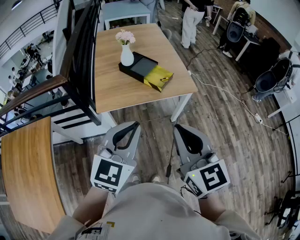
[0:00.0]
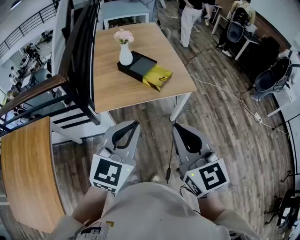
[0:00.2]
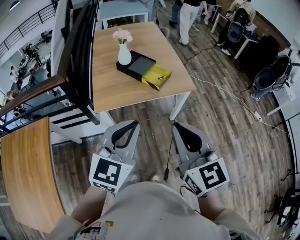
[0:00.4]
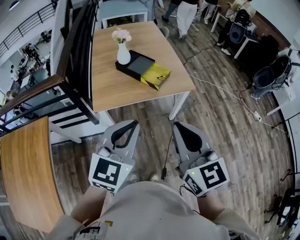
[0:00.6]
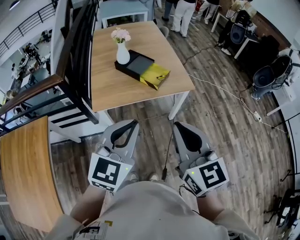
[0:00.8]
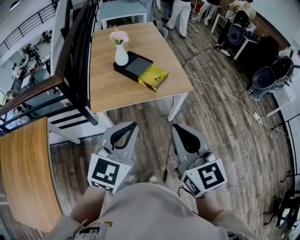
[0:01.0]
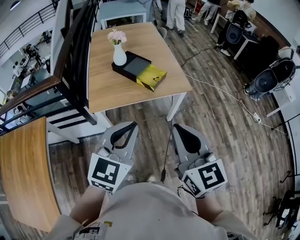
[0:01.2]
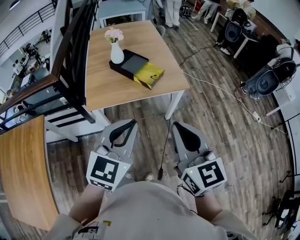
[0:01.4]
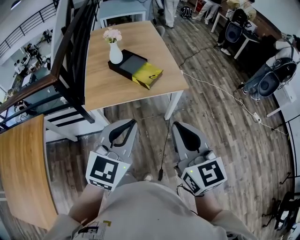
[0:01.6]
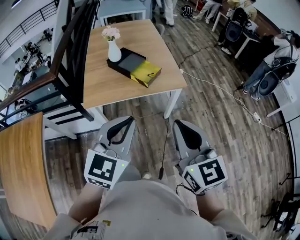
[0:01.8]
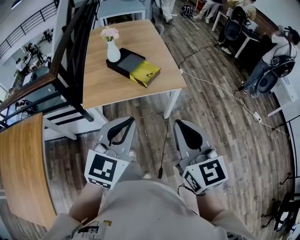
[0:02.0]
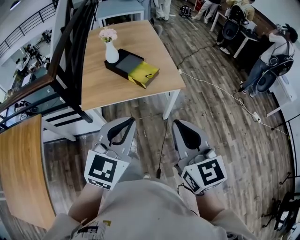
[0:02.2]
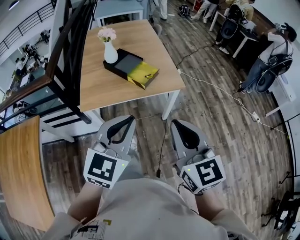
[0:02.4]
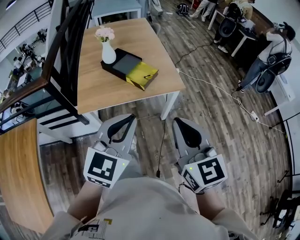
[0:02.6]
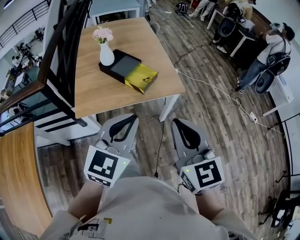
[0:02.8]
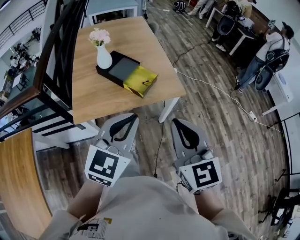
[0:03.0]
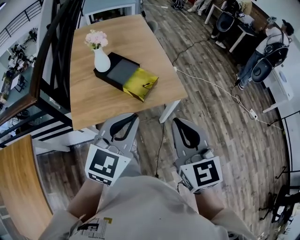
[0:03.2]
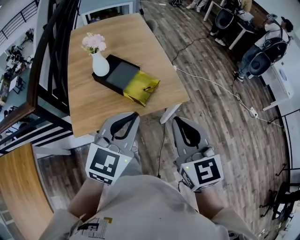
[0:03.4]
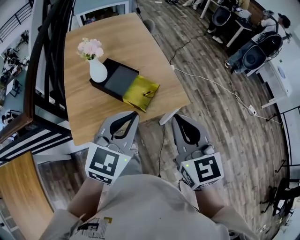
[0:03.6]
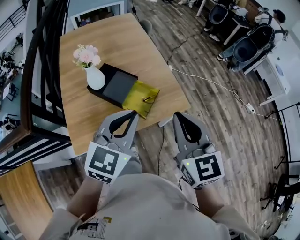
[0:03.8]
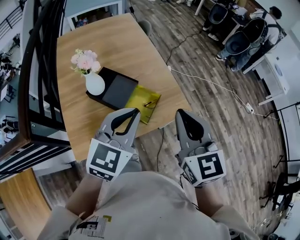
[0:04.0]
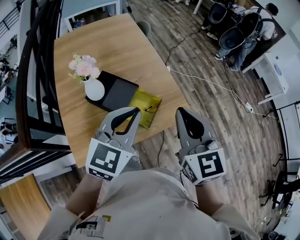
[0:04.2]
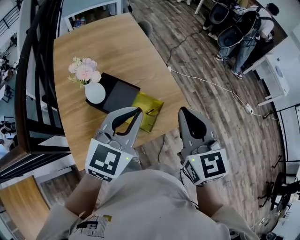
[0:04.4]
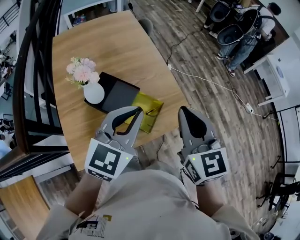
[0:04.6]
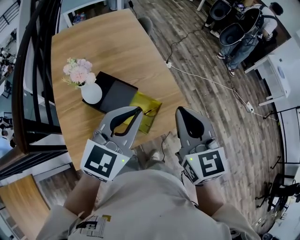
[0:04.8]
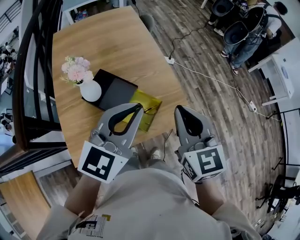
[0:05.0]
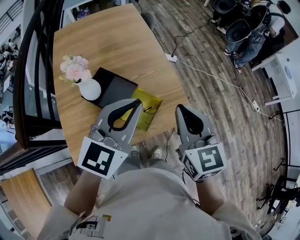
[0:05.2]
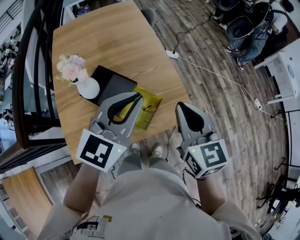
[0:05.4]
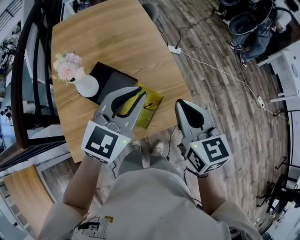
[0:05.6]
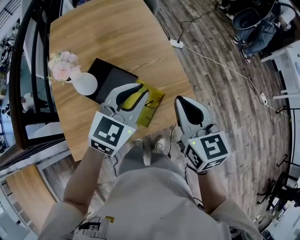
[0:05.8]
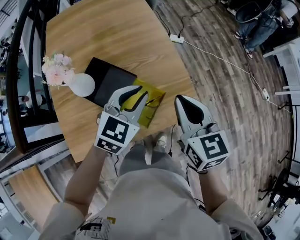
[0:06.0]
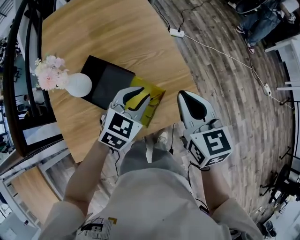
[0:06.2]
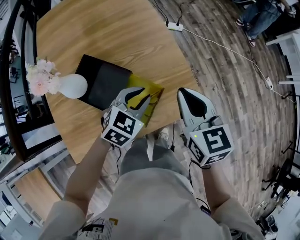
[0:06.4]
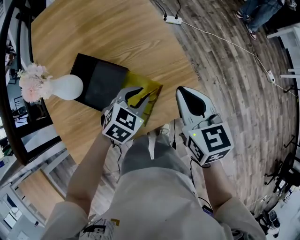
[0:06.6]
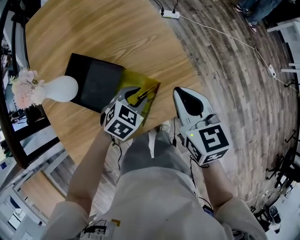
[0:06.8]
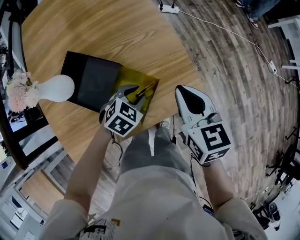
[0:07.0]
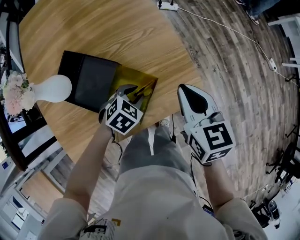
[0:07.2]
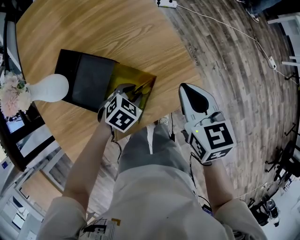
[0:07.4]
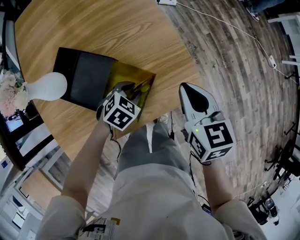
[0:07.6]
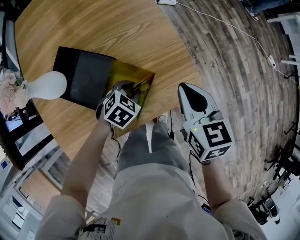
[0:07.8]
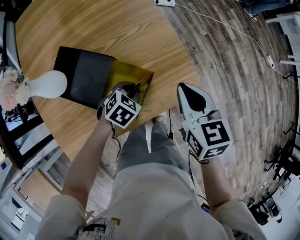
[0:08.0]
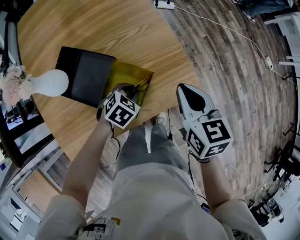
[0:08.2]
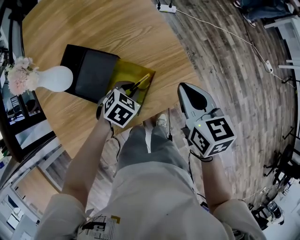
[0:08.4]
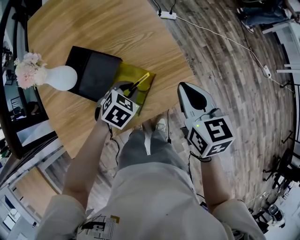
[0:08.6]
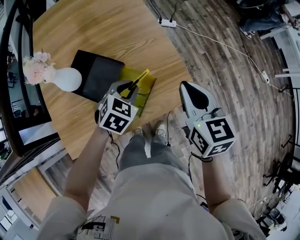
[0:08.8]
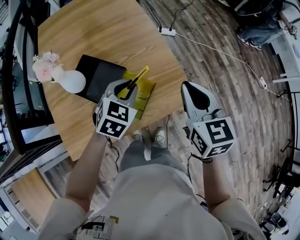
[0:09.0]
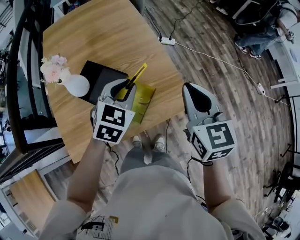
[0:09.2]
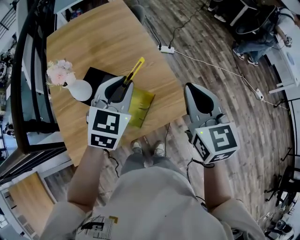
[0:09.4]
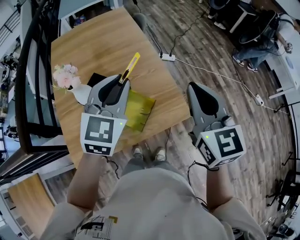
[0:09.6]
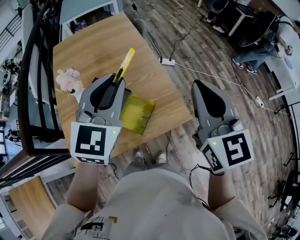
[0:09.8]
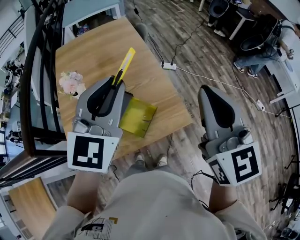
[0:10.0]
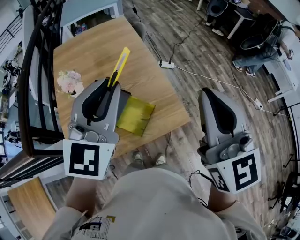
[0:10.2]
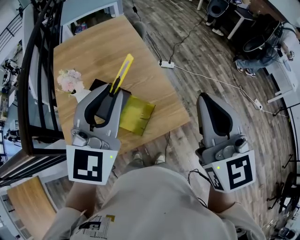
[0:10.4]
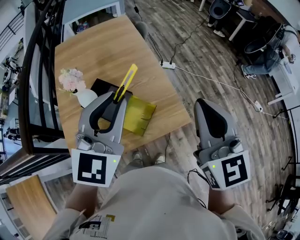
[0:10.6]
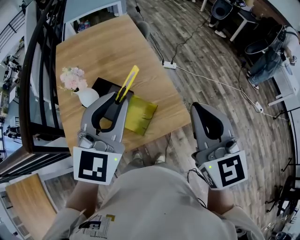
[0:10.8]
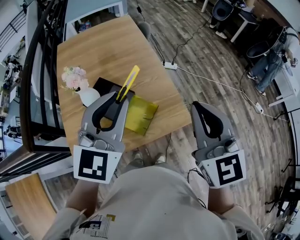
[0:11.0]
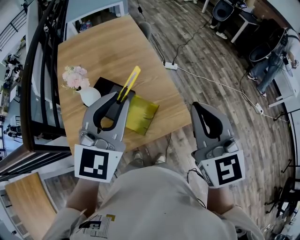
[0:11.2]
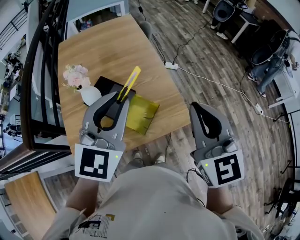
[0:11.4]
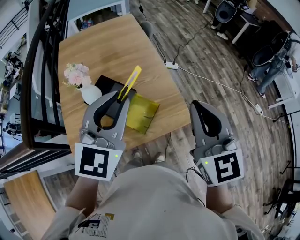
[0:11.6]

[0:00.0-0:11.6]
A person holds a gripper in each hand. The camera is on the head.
0:00.0 to 0:01.4: Both grippers move to the right, about 5 cm.
0:01.4 to 0:02.8: The grippers both shift forward by roughly 10 cm.
0:02.8 to 0:04.4: Both grippers are carried forward, about 40 cm.
0:04.4 to 0:05.8: The right gripper is displaced downward and forward by some 15 cm. The left gripper moves forward and downward, some 15 cm.
0:05.8 to 0:07.2: The right gripper heads downward, covering roughly 15 cm; the left gripper is displaced downward by about 30 cm, and angles its fingers downward, by some 40 degrees.
0:07.2 to 0:08.8: The two grippers go roughly 10 cm upward.
0:08.8 to 0:10.2: The two grippers go approximately 35 cm upward. The left gripper angles its fingers upward, by roughly 50 degrees. Meanwhile the right gripper changes its angle by roughly 30 degrees.
0:10.2 to 0:11.6: The left gripper ends up approximately 5 cm from where it was, while the right gripper moves downward, roughly 5 cm.

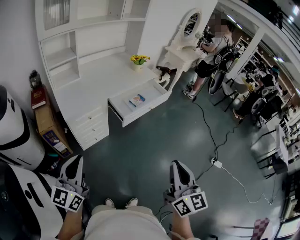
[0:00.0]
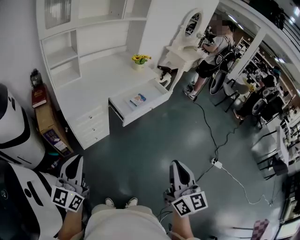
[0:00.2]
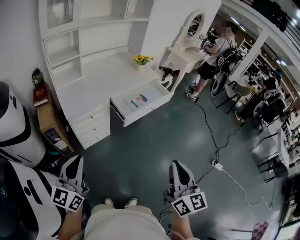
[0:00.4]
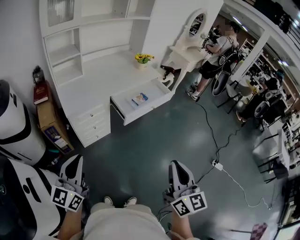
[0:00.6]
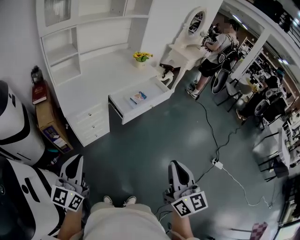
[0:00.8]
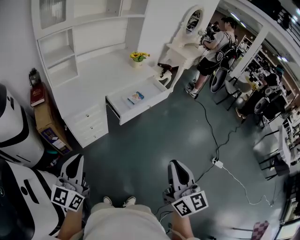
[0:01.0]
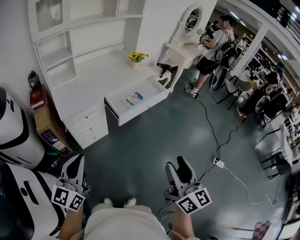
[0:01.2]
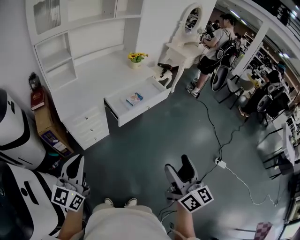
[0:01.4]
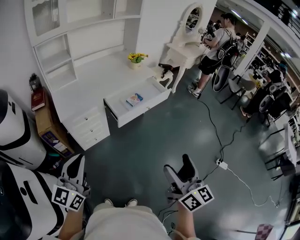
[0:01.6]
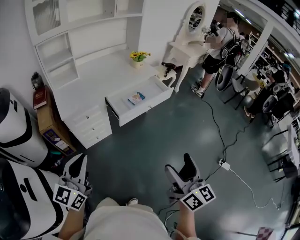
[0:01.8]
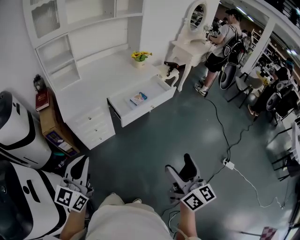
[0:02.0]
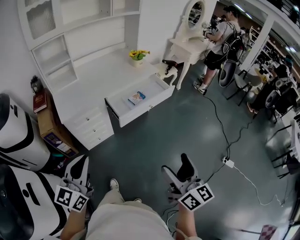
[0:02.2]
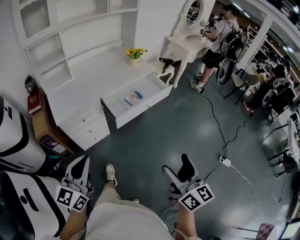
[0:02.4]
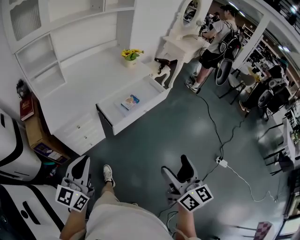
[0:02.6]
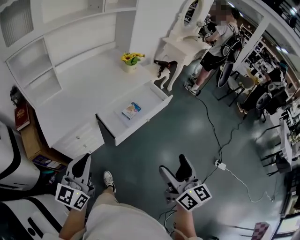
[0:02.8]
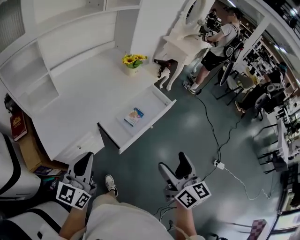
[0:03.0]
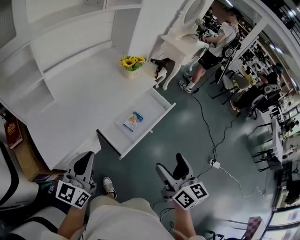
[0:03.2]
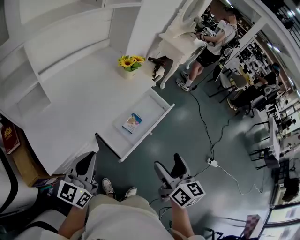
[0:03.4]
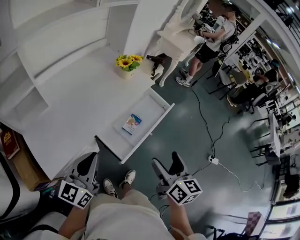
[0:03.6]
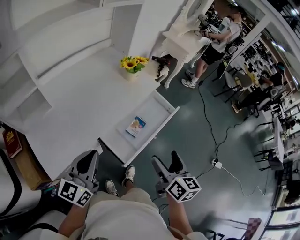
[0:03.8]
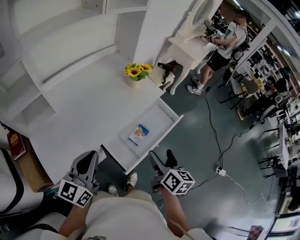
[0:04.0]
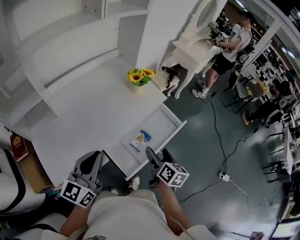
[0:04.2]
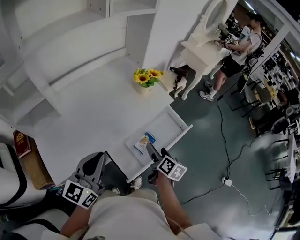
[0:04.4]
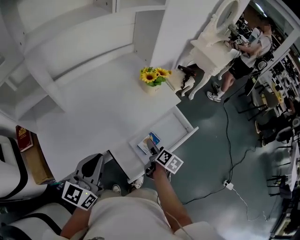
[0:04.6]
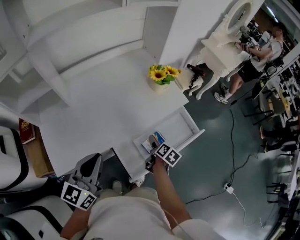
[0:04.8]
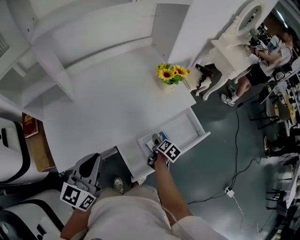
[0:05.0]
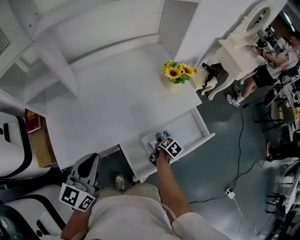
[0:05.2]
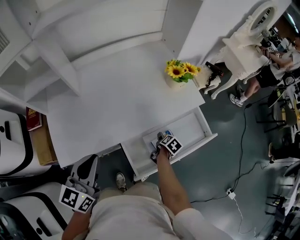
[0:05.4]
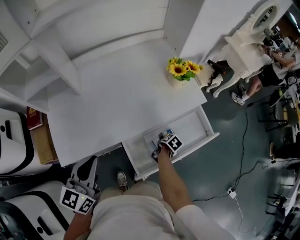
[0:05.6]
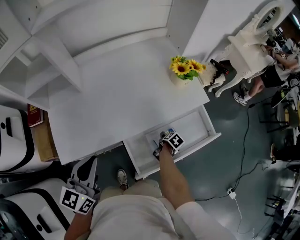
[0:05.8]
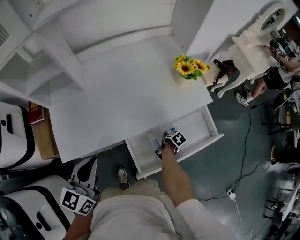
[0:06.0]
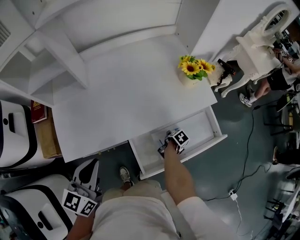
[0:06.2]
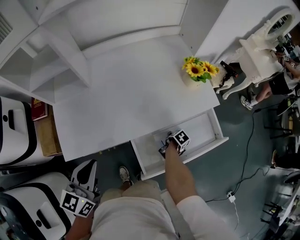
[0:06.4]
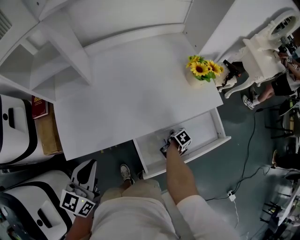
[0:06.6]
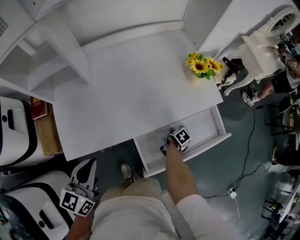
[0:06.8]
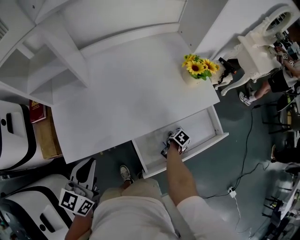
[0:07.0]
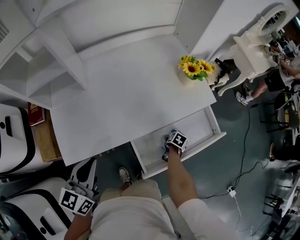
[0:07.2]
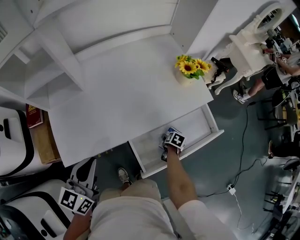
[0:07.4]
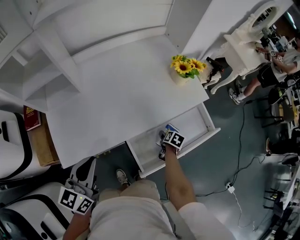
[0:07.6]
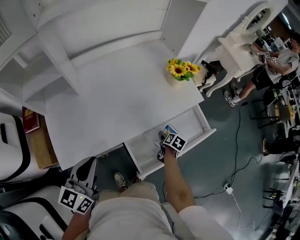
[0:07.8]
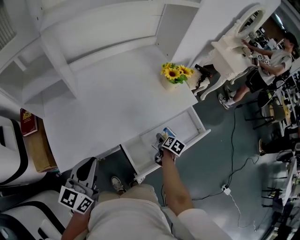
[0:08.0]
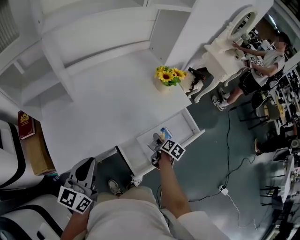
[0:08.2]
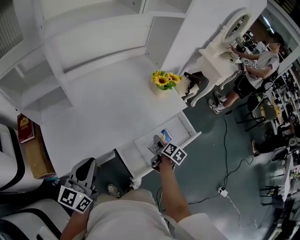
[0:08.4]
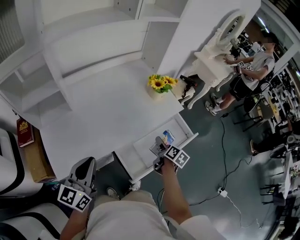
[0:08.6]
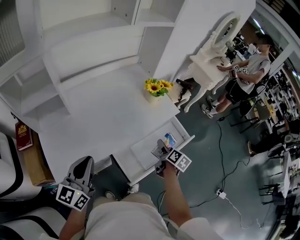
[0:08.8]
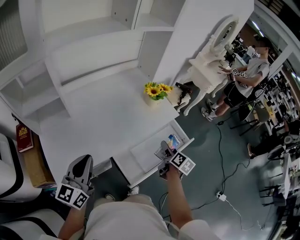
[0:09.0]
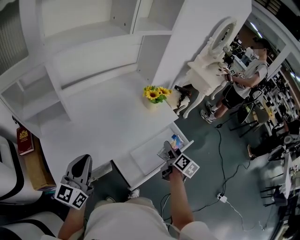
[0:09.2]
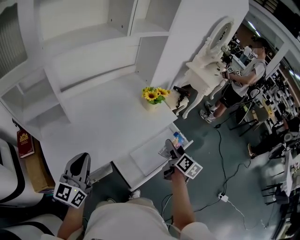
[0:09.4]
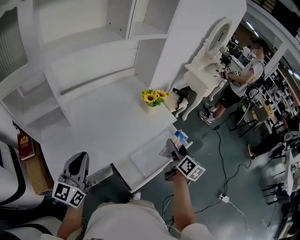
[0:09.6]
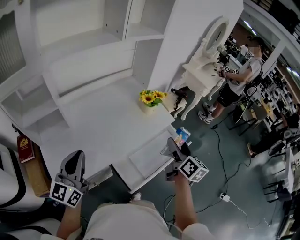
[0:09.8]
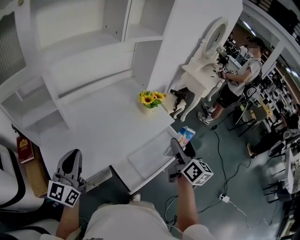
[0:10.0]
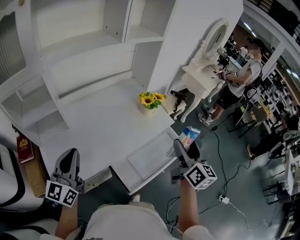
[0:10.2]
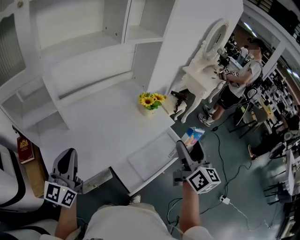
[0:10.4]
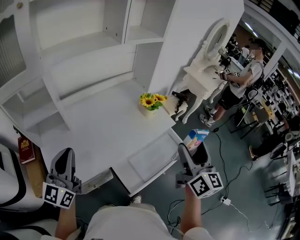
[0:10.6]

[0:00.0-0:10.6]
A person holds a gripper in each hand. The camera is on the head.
0:00.0 to 0:01.6: Both grippers move to the right, some 10 cm. The right gripper opens.
0:01.6 to 0:03.0: The two grippers go roughly 30 cm forward.
0:03.0 to 0:04.6: The left gripper is displaced forward by some 20 cm. The right gripper is displaced forward and downward by some 40 cm, and turns by roughly 40 degrees.
0:04.6 to 0:06.0: The left gripper is displaced to the left by roughly 5 cm. The right gripper is displaced downward by approximately 20 cm, and angles its fingers downward, by approximately 40 degrees.
0:06.0 to 0:07.6: The right gripper turns by some 20 degrees.
0:07.6 to 0:09.0: The right gripper moves upward, approximately 25 cm, and tilts its fingers roughly 40 degrees upward. Meanwhile the left gripper shifts about 5 cm upward.
0:09.0 to 0:10.6: The left gripper shifts approximately 10 cm upward. The right gripper travels upward by roughly 30 cm, and tilts its fingers roughly 30 degrees upward.

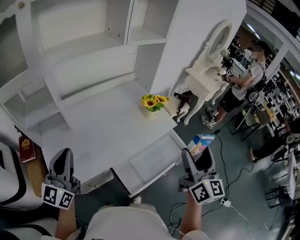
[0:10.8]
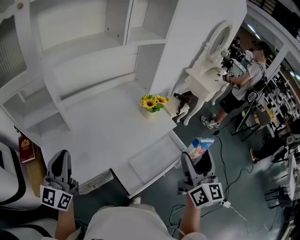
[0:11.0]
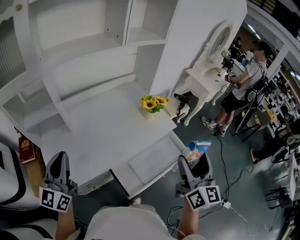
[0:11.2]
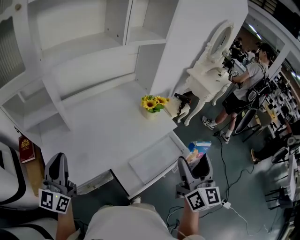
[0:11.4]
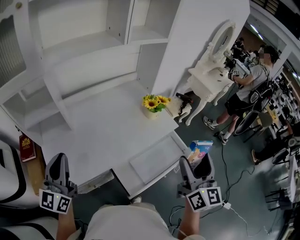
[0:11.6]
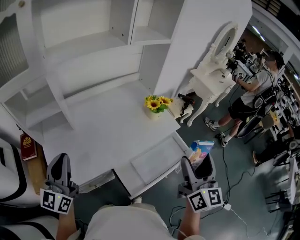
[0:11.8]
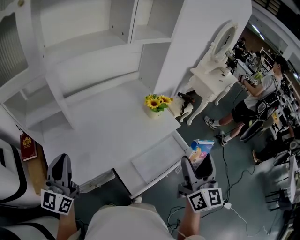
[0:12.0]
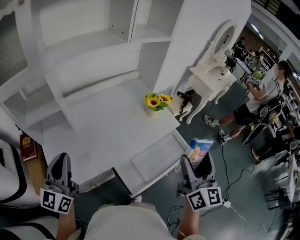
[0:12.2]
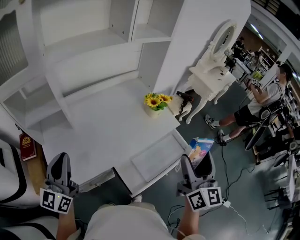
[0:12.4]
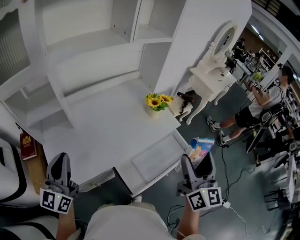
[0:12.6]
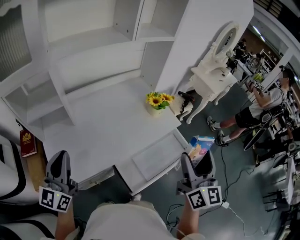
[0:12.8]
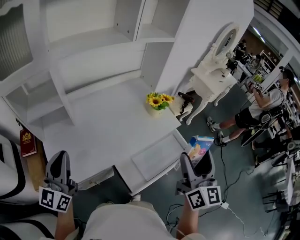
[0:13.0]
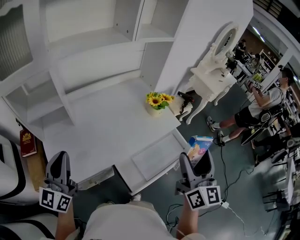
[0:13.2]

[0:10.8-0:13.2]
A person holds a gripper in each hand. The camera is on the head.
0:10.8 to 0:13.2: The grippers move only a little.
